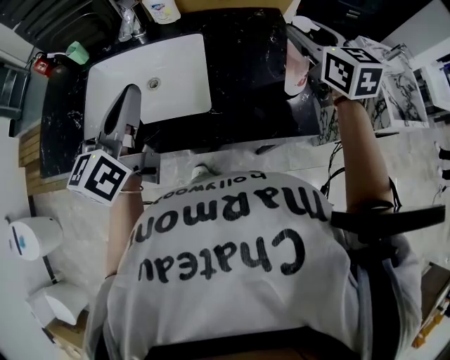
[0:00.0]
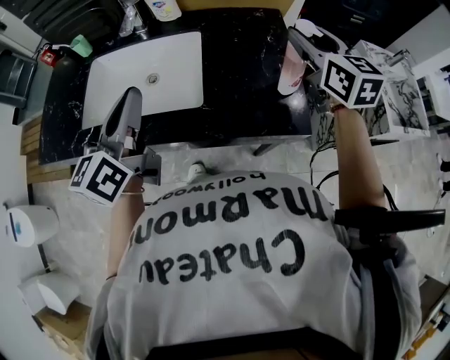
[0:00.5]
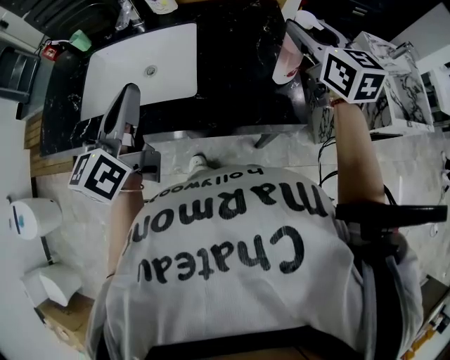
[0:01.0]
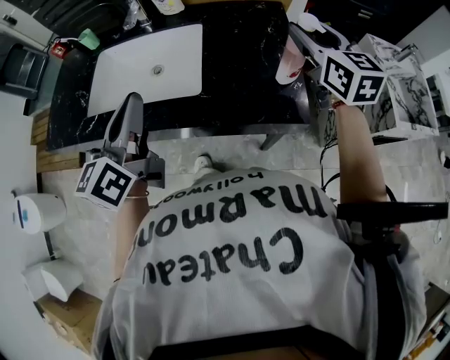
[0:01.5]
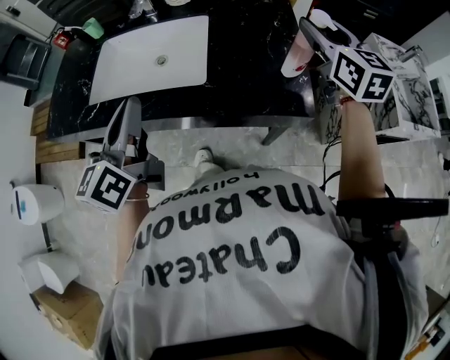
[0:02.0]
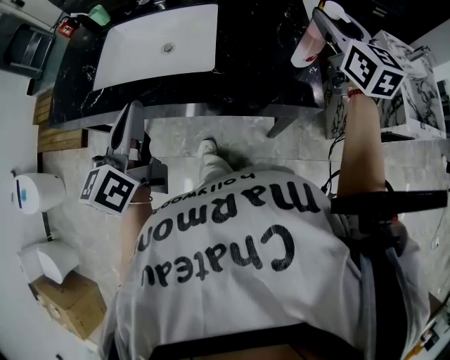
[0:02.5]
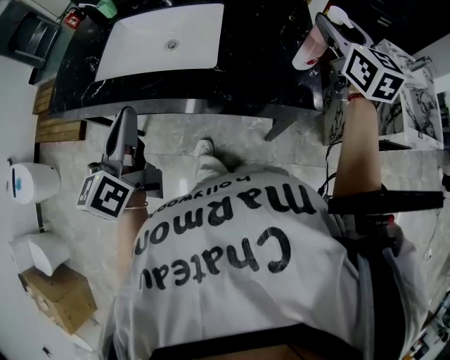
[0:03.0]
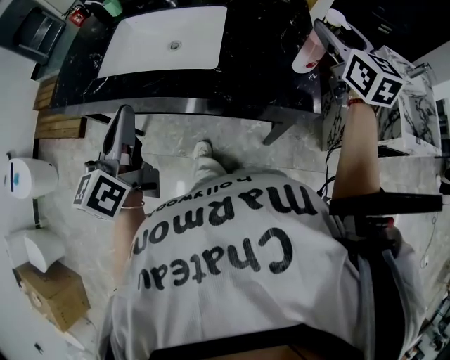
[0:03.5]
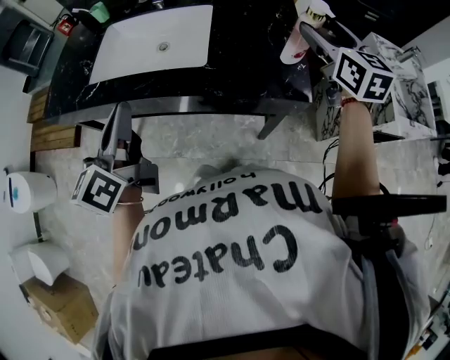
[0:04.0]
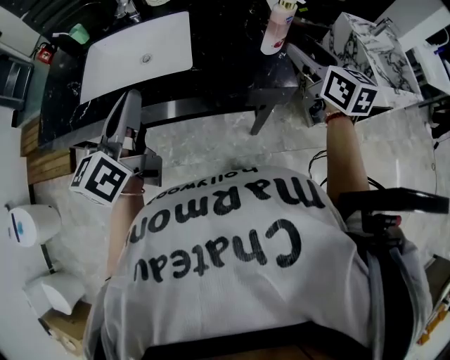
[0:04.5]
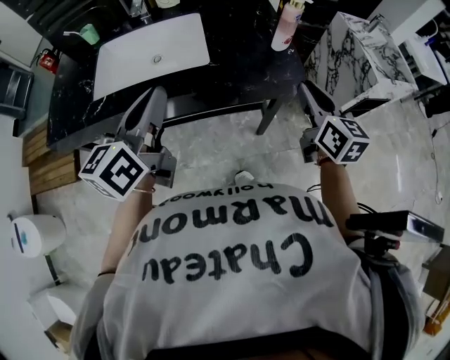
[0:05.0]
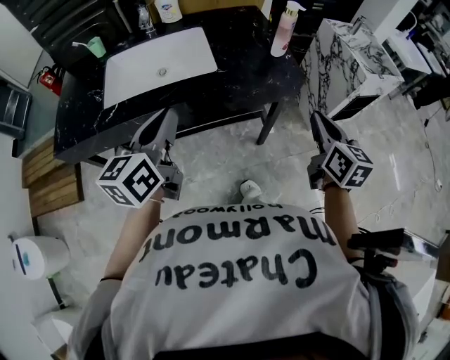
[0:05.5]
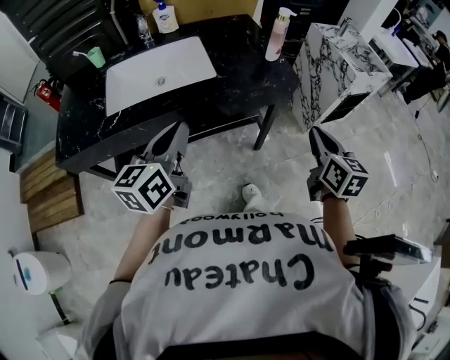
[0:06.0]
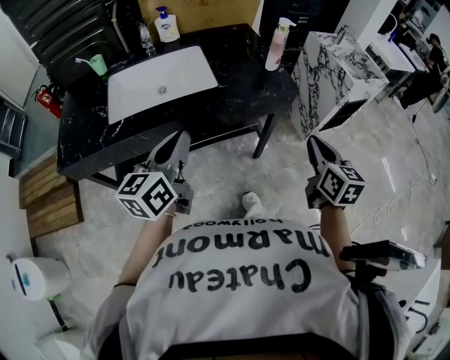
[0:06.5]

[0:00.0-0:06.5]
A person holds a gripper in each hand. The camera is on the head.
0:00.0 to 0:02.0: The left gripper is displaced backward by about 10 cm. The right gripper changes place by some 5 cm.
0:02.0 to 0:04.5: The right gripper travels backward by about 10 cm, and opens up.
0:04.5 to 0:06.5: The left gripper goes roughly 10 cm backward, and rotates approximately 20 degrees. The right gripper heads backward, covering roughly 30 cm, rotates approximately 30 degrees, and closes up.

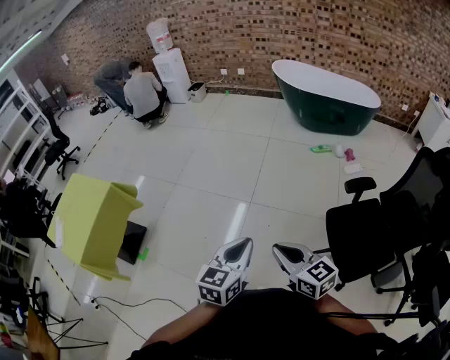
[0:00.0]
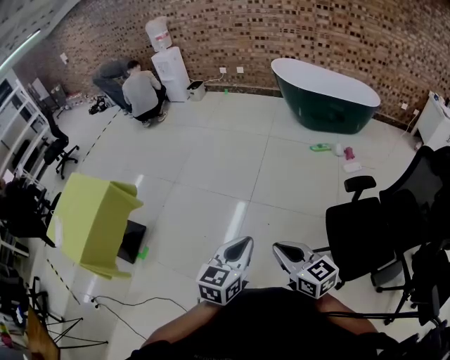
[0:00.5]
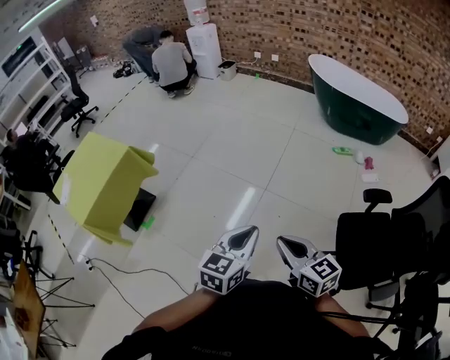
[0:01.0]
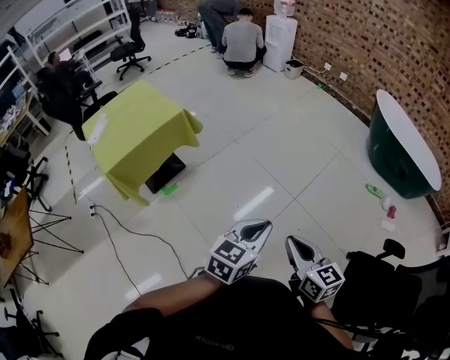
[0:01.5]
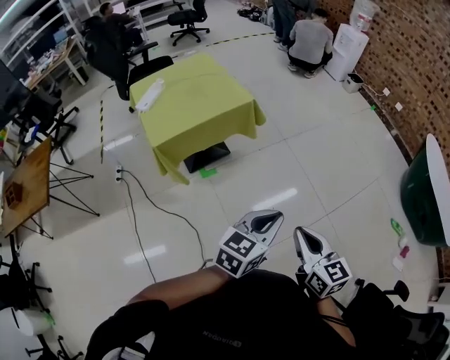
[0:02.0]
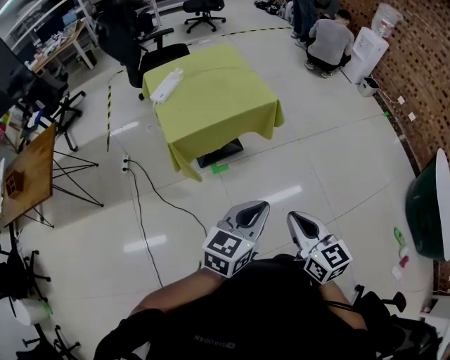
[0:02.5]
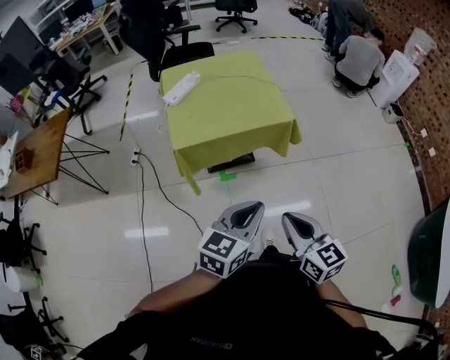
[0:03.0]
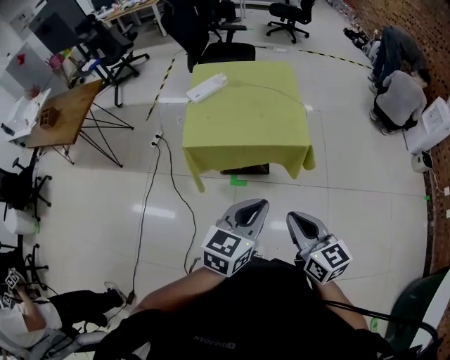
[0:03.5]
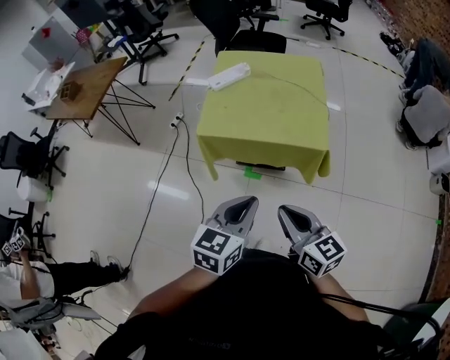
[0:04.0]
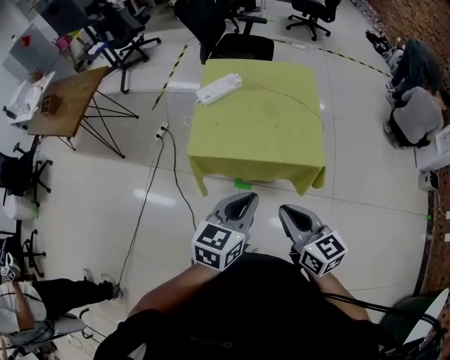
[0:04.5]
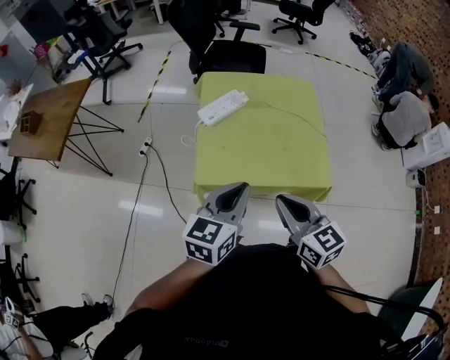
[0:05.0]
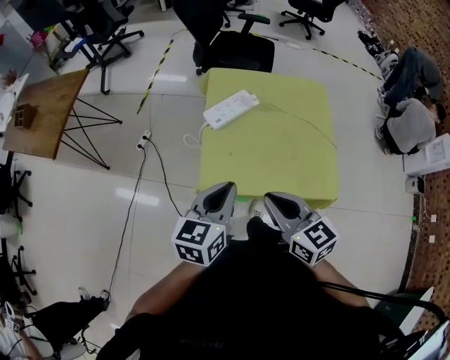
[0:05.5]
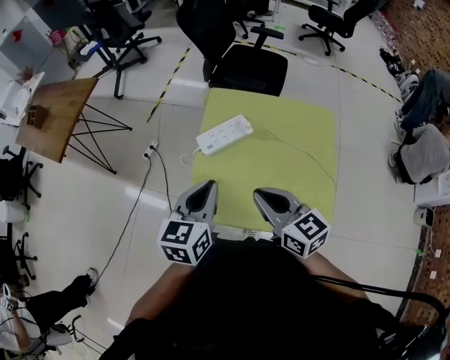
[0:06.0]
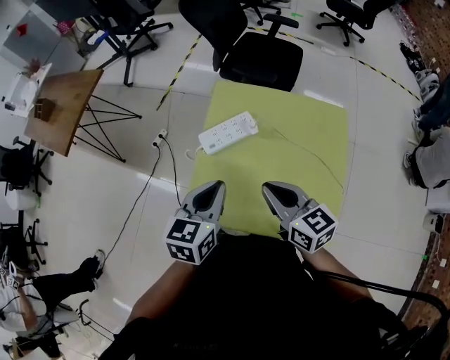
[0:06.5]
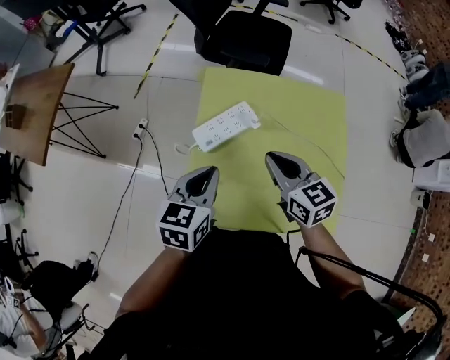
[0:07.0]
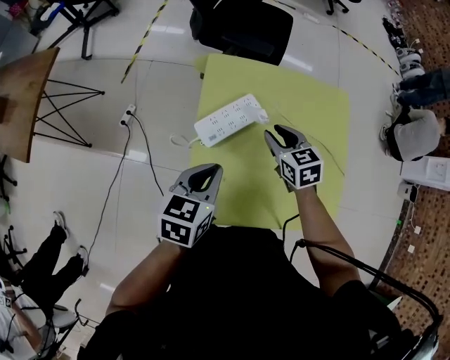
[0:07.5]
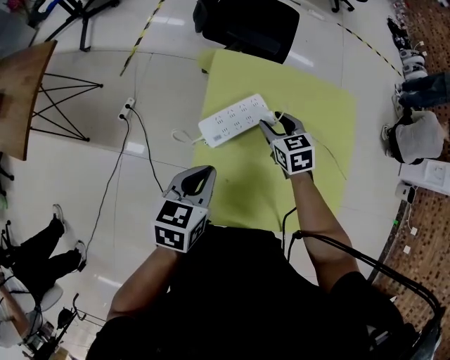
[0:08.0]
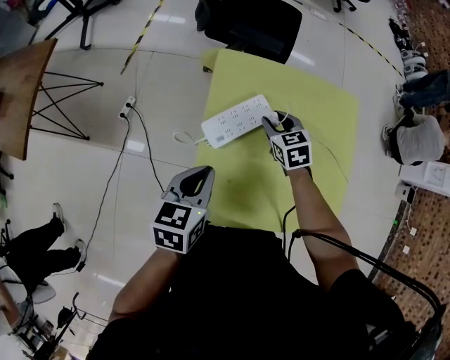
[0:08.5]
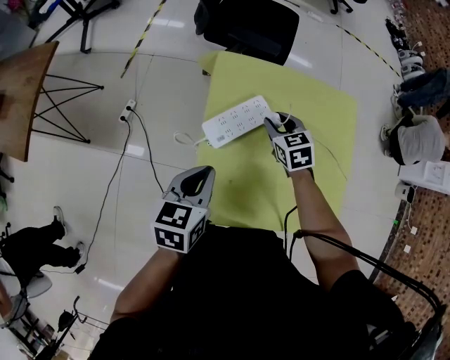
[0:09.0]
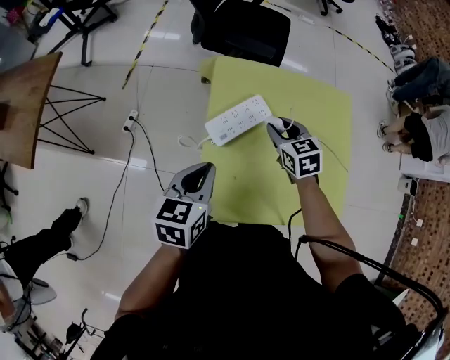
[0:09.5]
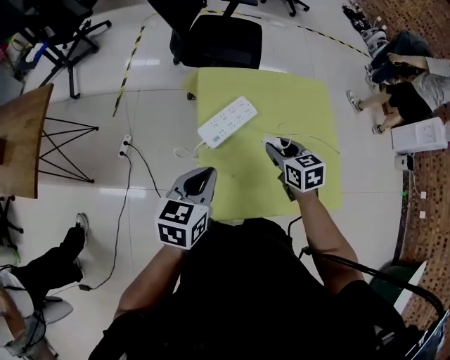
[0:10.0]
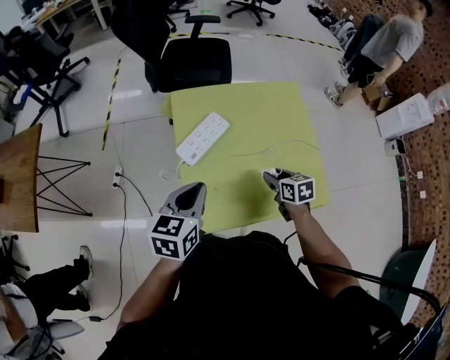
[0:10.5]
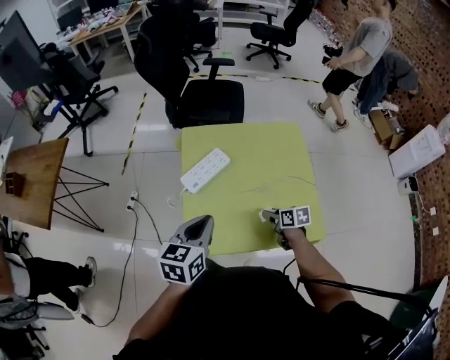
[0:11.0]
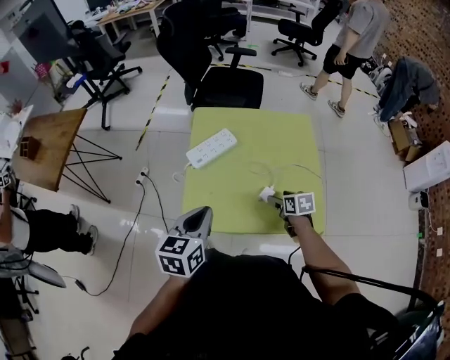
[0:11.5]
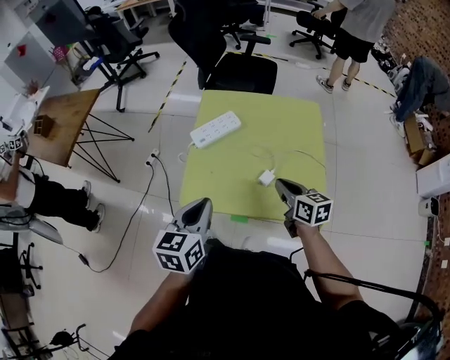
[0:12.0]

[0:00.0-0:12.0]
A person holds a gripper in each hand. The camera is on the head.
0:00.0 to 0:02.0: The two grippers travel together, approximately 40 cm. The right gripper changes its angle by roughly 30 degrees, while the left gripper swivels roughly 30 degrees.
0:02.0 to 0:04.0: The left gripper shifts by about 30 cm, and swivels roughly 50 degrees, while the right gripper changes place by approximately 35 cm, and swivels about 50 degrees.
0:04.0 to 0:06.0: Both grippers are carried forward, about 40 cm.
0:06.0 to 0:08.0: The left gripper moves downward, forward and to the left, approximately 15 cm, and rotates about 20 degrees, while the right gripper is displaced forward and downward by approximately 35 cm, changes its angle by some 30 degrees, and opens.
0:08.0 to 0:10.0: The left gripper changes place by about 5 cm; the right gripper moves backward and upward, approximately 15 cm.
0:10.0 to 0:12.0: The two grippers go about 20 cm backward and to the right. The right gripper swivels approximately 20 degrees, and closes its fingers.

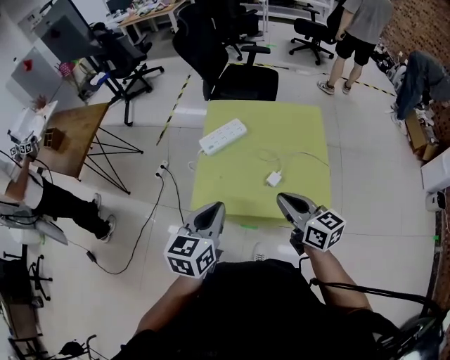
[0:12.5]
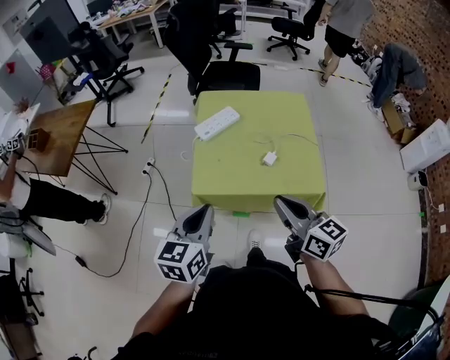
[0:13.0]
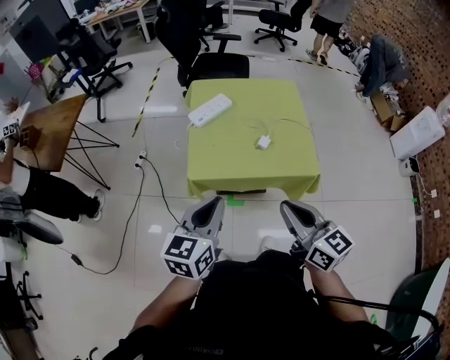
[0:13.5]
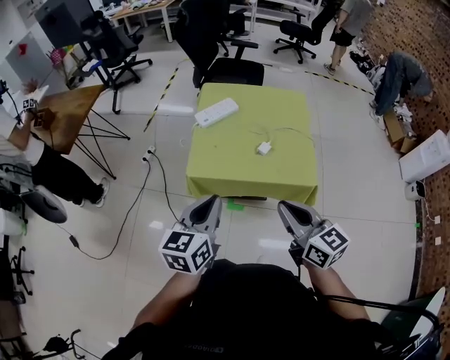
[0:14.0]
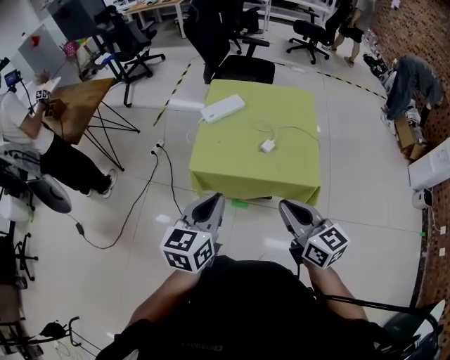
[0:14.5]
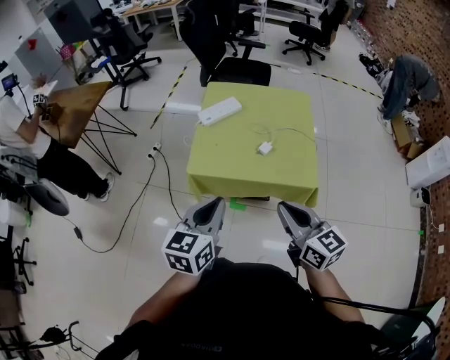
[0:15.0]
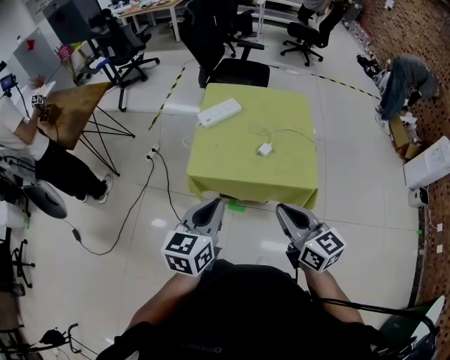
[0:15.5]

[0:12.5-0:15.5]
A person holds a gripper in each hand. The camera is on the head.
0:12.5 to 0:14.0: The grippers both shift backward by roughly 15 cm.
0:14.0 to 0:15.5: The grippers make only small movements.

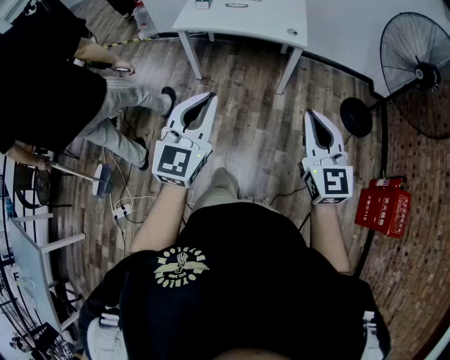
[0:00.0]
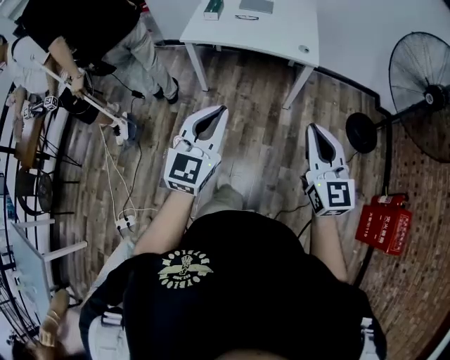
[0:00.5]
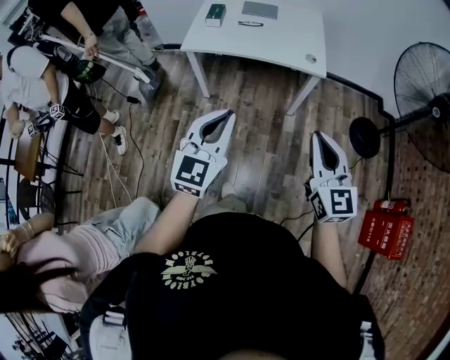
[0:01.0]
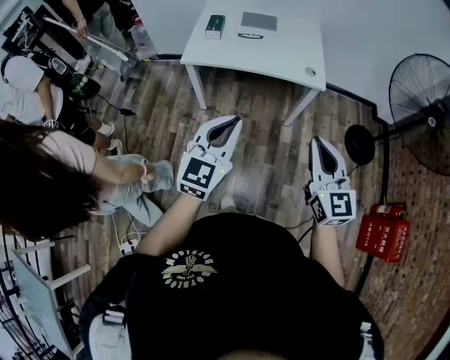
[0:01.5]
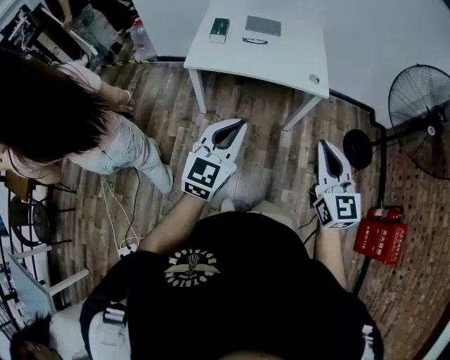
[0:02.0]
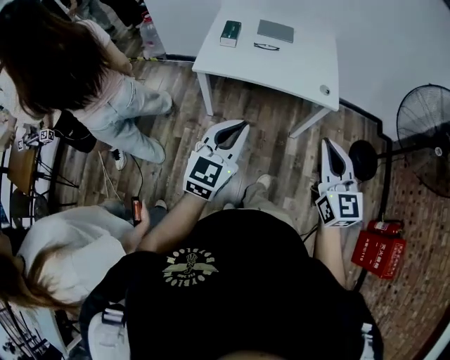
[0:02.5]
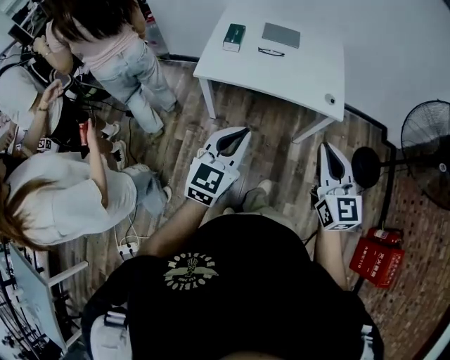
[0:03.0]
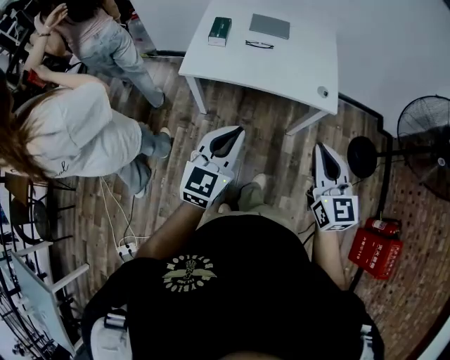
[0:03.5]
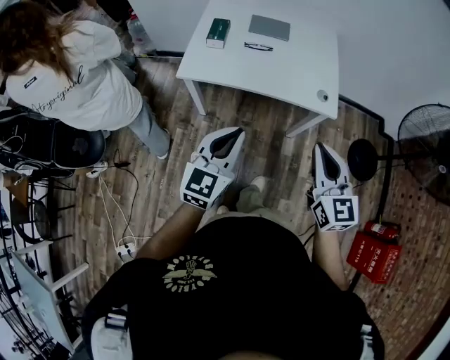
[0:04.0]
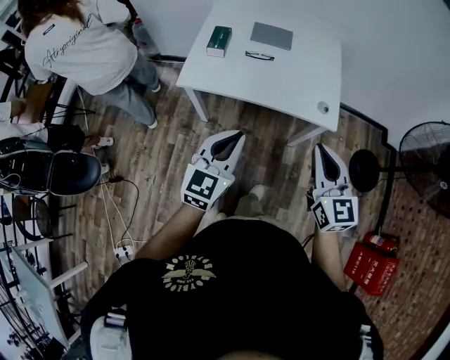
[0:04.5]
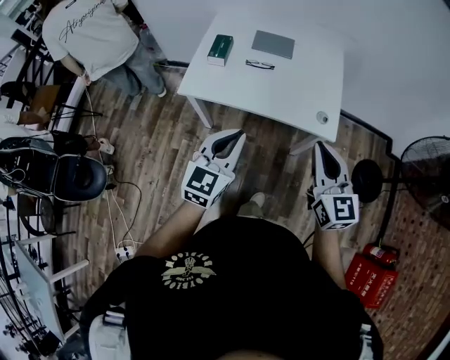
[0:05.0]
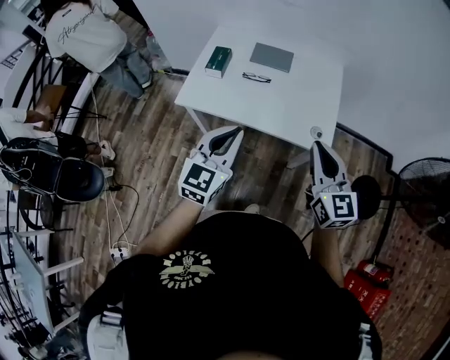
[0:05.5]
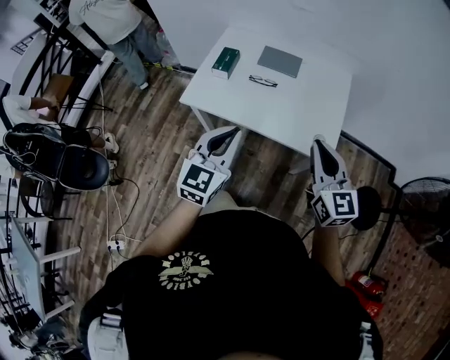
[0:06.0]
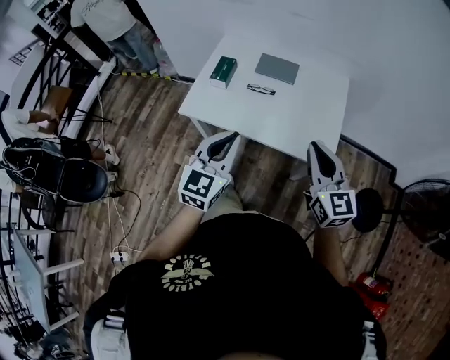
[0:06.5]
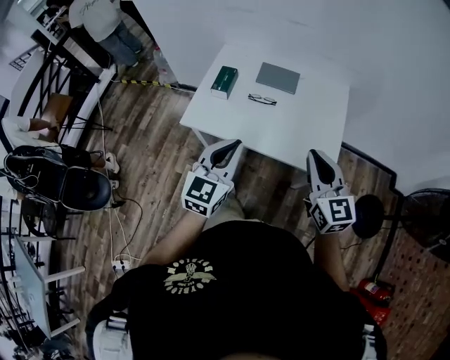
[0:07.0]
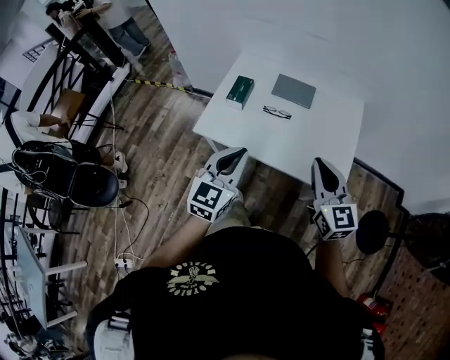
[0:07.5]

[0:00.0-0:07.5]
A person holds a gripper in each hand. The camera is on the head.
0:00.0 to 0:02.0: The grippers both shift forward and to the left by roughly 25 cm.
0:02.0 to 0:04.0: Both grippers travel together forward, about 15 cm.
0:04.0 to 0:05.5: Both grippers move forward and to the right, roughly 15 cm.
0:05.5 to 0:07.5: Both grippers travel together forward, about 10 cm.
